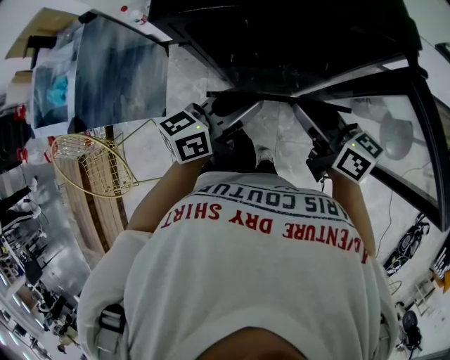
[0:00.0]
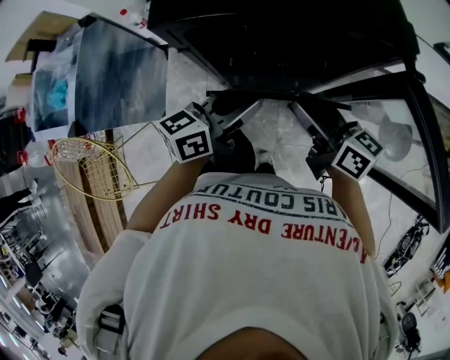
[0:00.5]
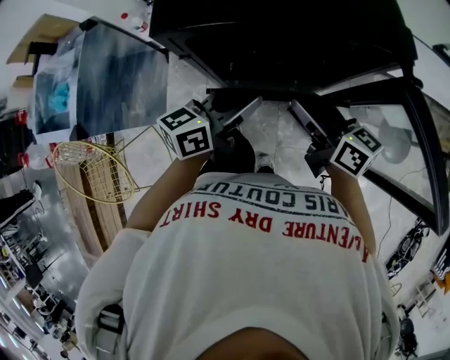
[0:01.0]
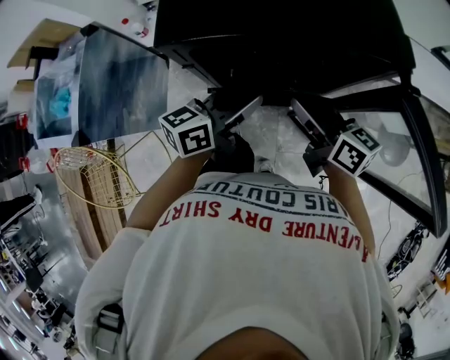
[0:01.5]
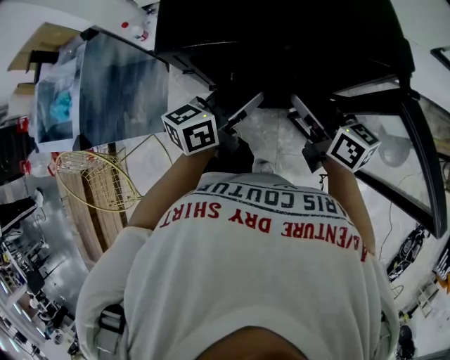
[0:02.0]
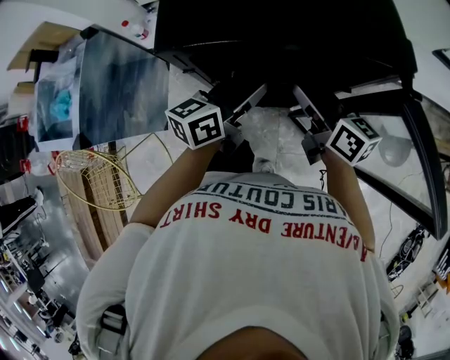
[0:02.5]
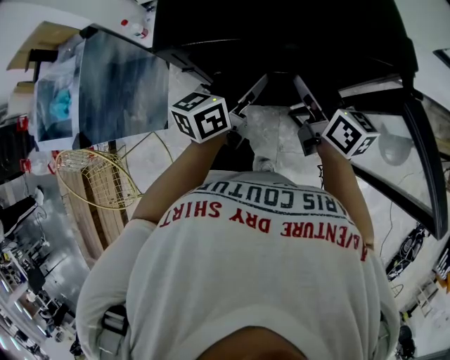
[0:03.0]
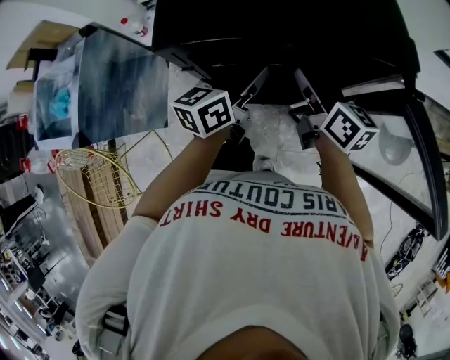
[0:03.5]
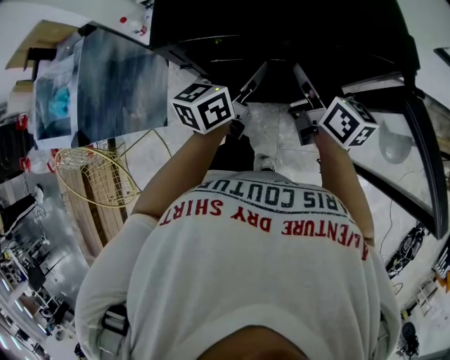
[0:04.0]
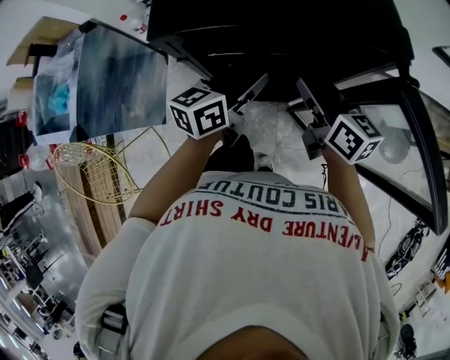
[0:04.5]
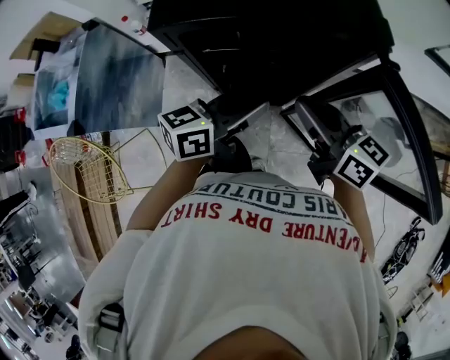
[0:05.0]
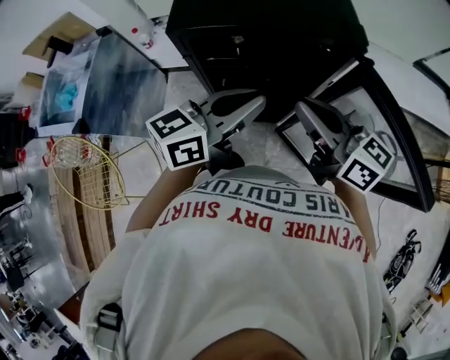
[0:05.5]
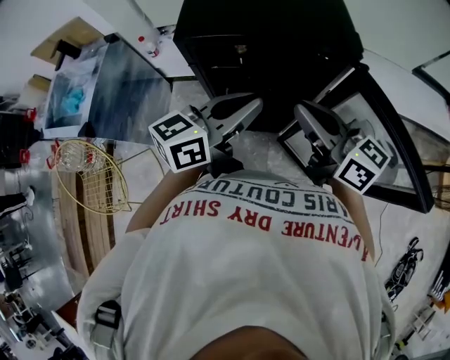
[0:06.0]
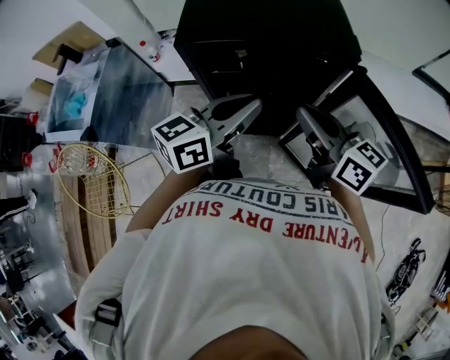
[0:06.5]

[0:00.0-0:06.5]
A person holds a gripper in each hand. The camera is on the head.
0:00.0 to 0:02.0: The two grippers go roughly 5 cm forward.
0:02.0 to 0:04.5: The grippers make only small movements.
0:04.5 to 0:06.5: The two grippers go about 15 cm upward and backward. The right gripper closes up; the left gripper closes its fingers.

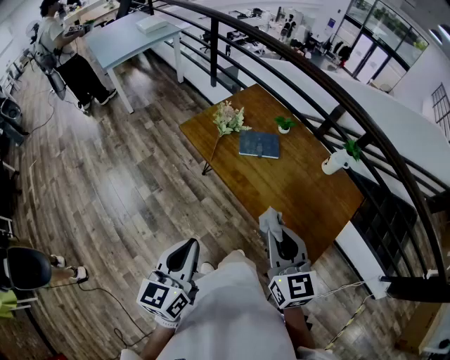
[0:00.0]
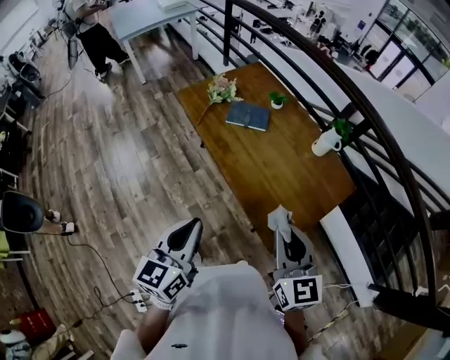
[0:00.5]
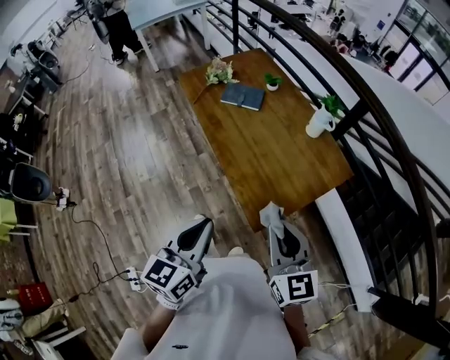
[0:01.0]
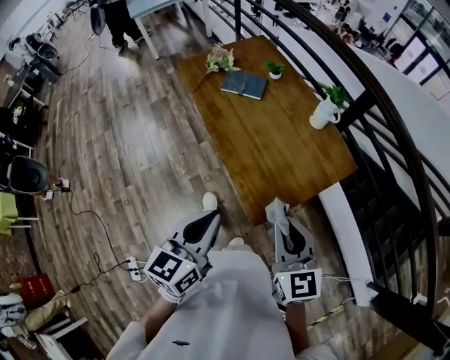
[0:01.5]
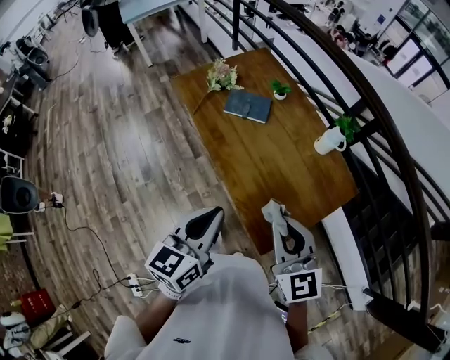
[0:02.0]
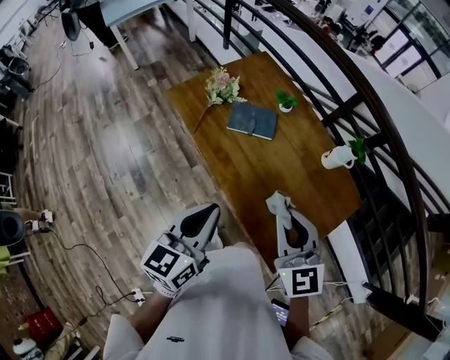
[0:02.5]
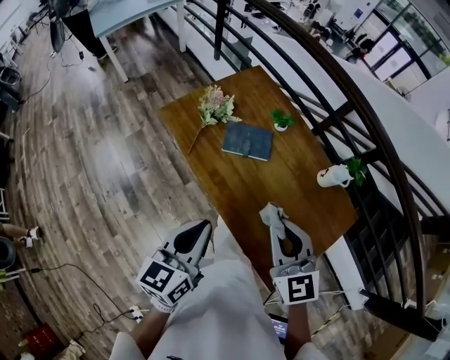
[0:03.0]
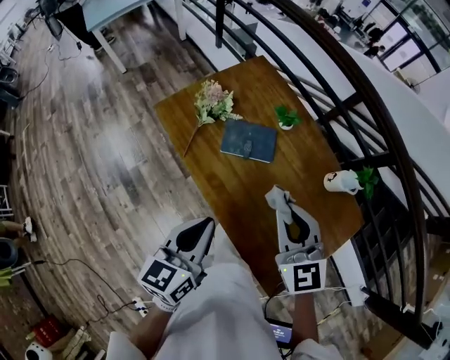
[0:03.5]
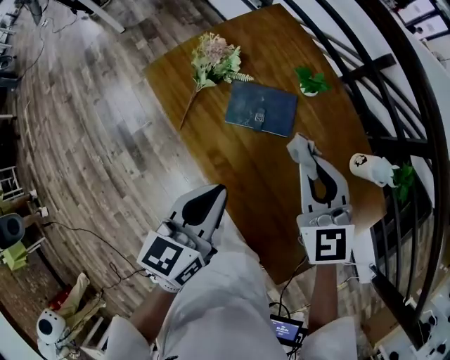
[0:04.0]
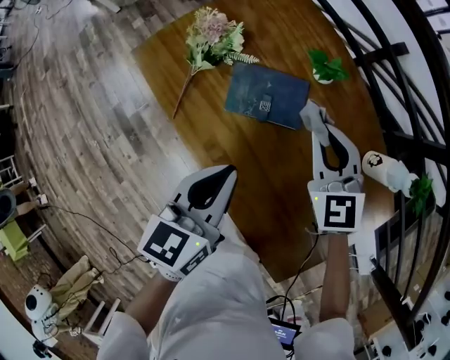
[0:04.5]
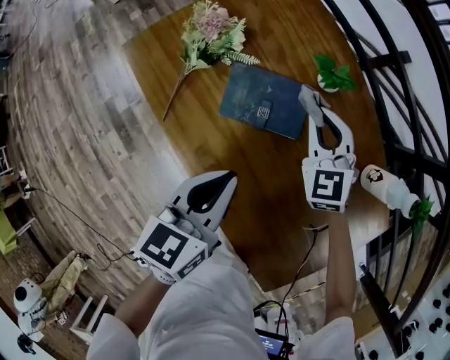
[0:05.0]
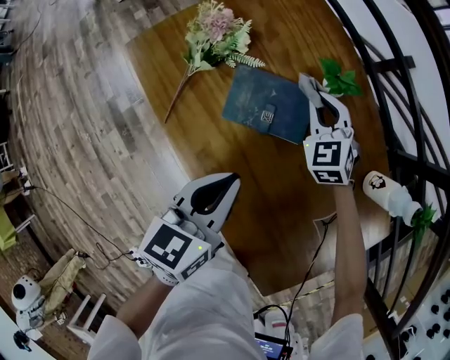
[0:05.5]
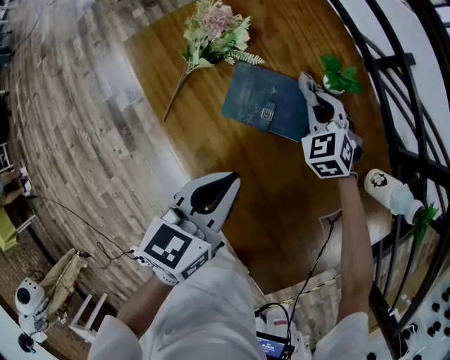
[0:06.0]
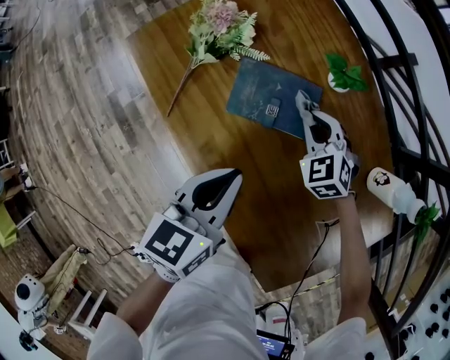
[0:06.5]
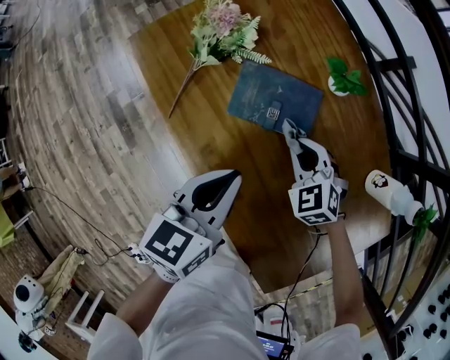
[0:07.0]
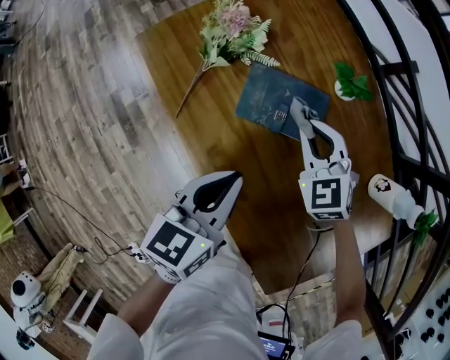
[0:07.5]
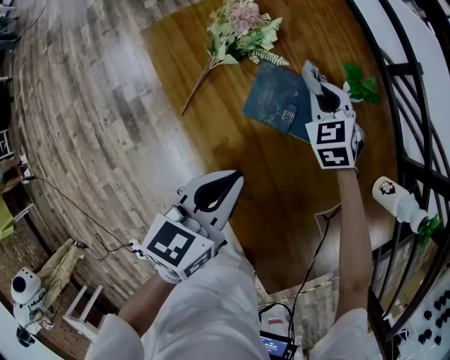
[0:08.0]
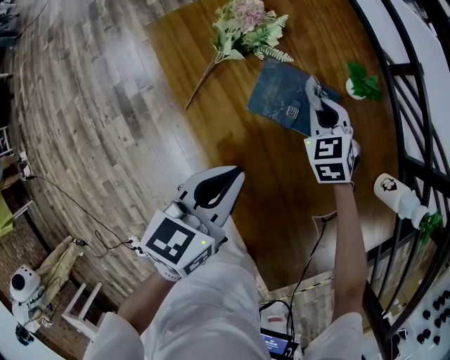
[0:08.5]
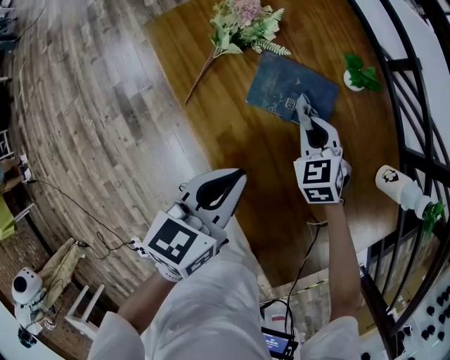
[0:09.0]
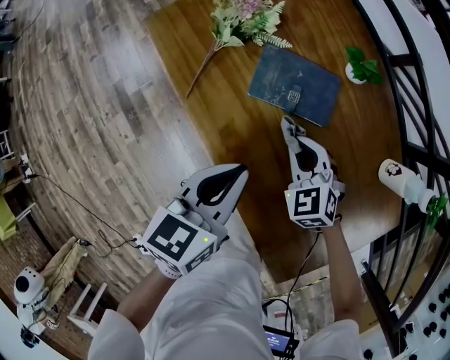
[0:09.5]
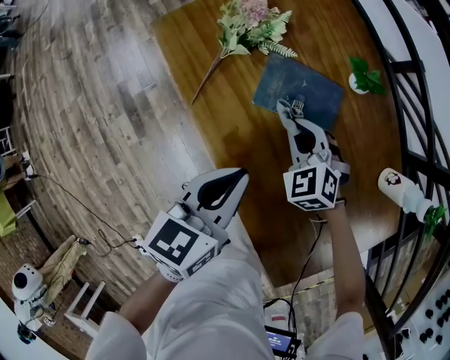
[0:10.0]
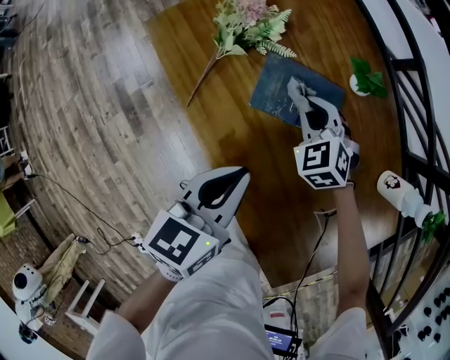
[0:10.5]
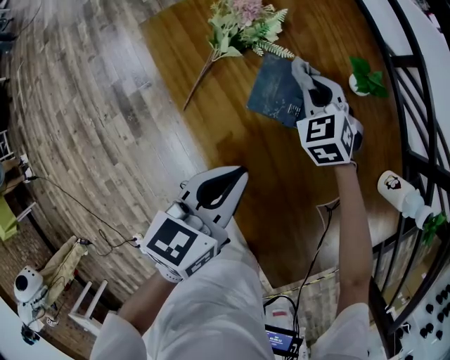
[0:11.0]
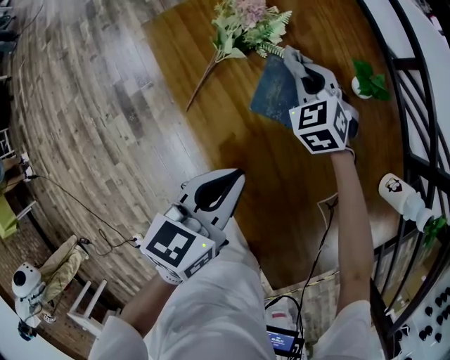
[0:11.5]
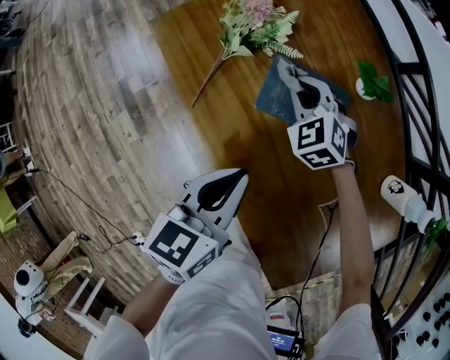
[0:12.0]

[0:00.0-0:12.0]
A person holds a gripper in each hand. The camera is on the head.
0:00.0 to 0:02.0: Both grippers move to the right, about 25 cm.
0:02.0 to 0:04.0: Both grippers move forward, some 35 cm.
0:04.0 to 0:06.0: The left gripper shifts about 10 cm downward and forward. Meanwhile the right gripper moves downward and forward, approximately 30 cm, and turns by about 40 degrees.
0:06.0 to 0:08.0: The right gripper moves to the left, roughly 5 cm, and reaches some 15 cm backward, then returns.
0:08.0 to 0:10.0: The right gripper shifts about 15 cm backward.
0:10.0 to 0:12.0: The right gripper is displaced forward by roughly 10 cm.

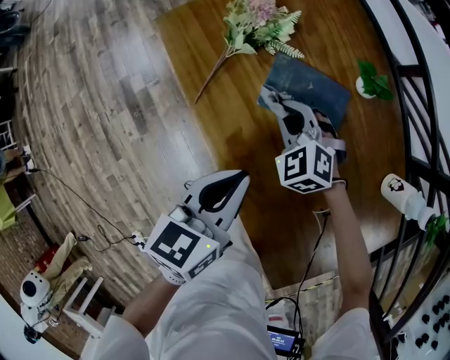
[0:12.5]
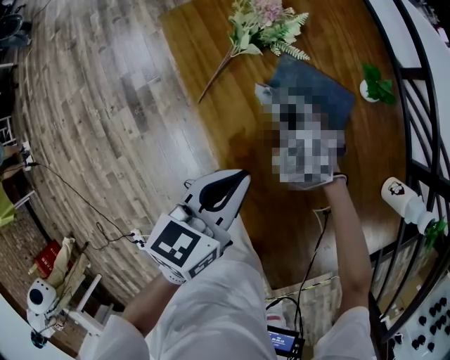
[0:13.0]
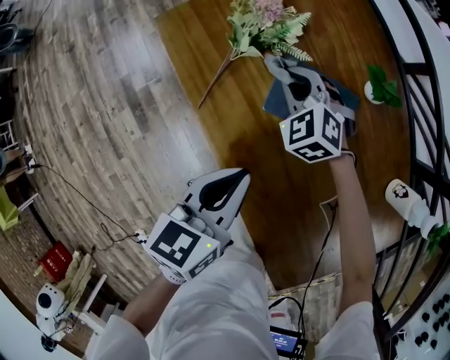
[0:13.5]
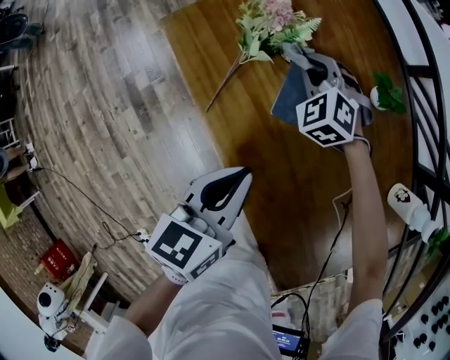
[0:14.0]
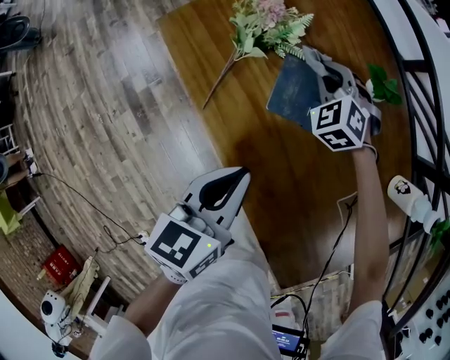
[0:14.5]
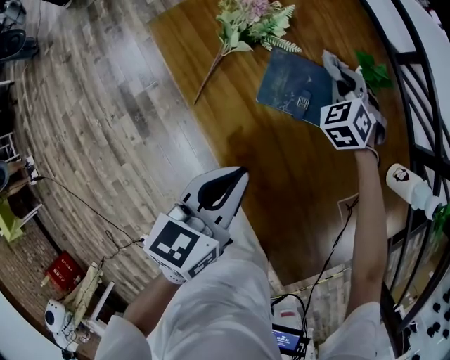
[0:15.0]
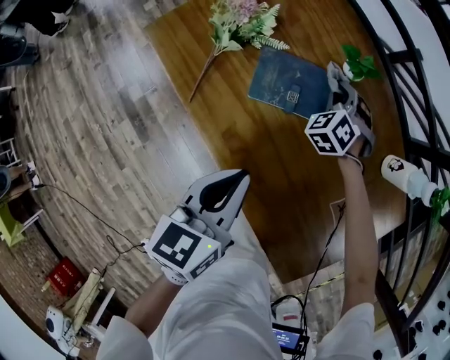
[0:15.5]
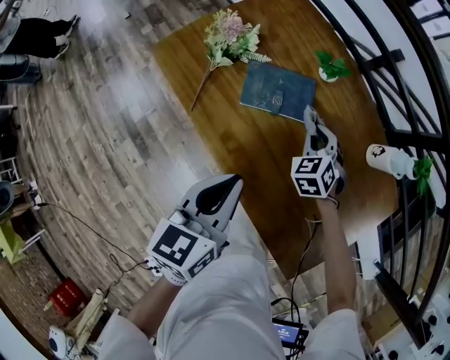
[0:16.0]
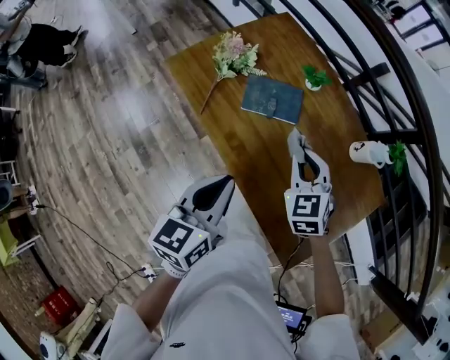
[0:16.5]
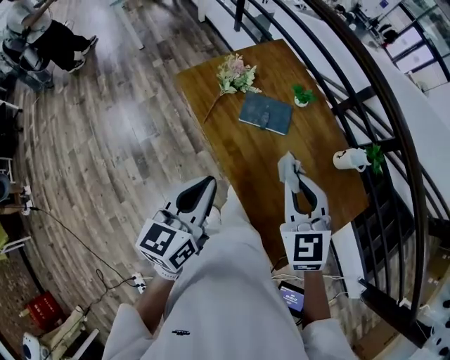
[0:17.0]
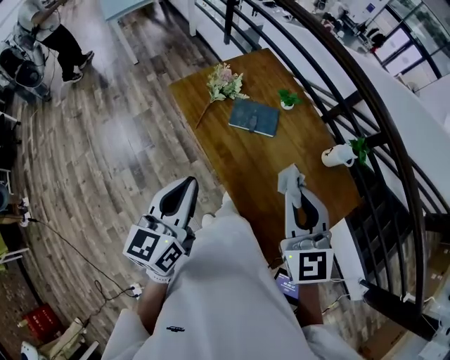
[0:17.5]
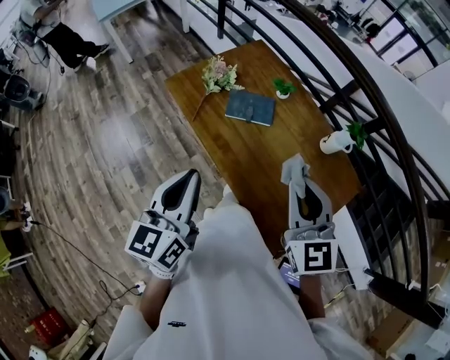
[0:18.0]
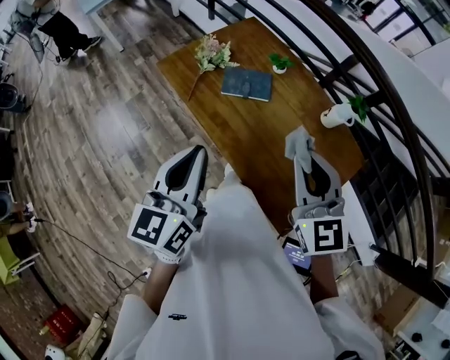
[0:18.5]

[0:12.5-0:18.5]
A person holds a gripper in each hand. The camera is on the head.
0:12.5 to 0:14.5: The right gripper shifts approximately 15 cm forward.
0:14.5 to 0:16.5: The left gripper travels upward and backward by about 15 cm. The right gripper goes roughly 35 cm backward, upward and to the right, and rotates approximately 40 degrees.
0:16.5 to 0:18.5: The left gripper travels upward and backward by some 15 cm. The right gripper is displaced upward and backward by about 25 cm, and swivels approximately 30 degrees.

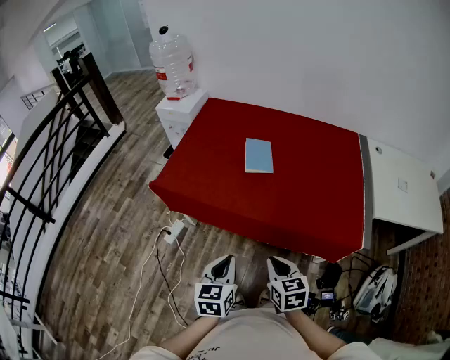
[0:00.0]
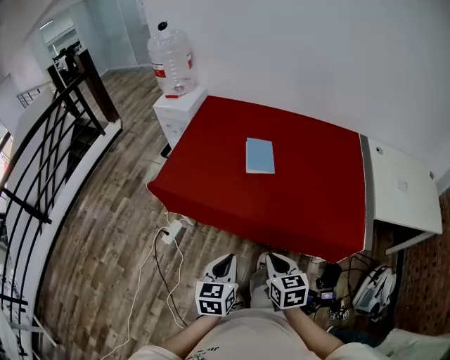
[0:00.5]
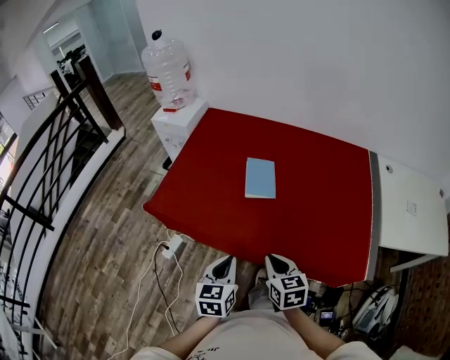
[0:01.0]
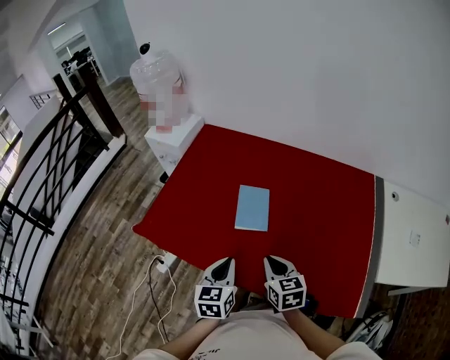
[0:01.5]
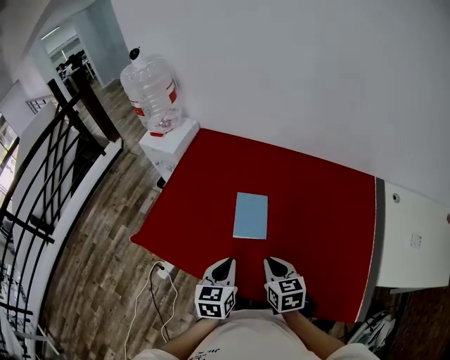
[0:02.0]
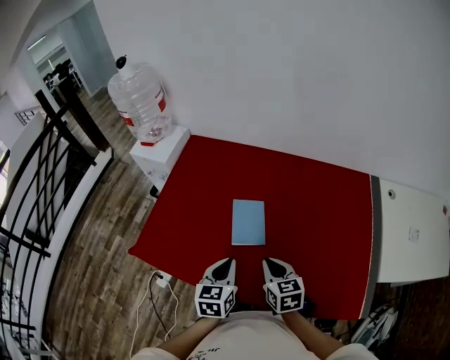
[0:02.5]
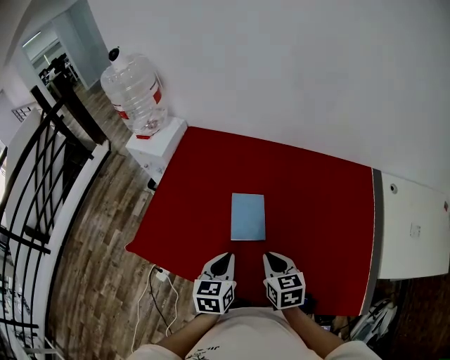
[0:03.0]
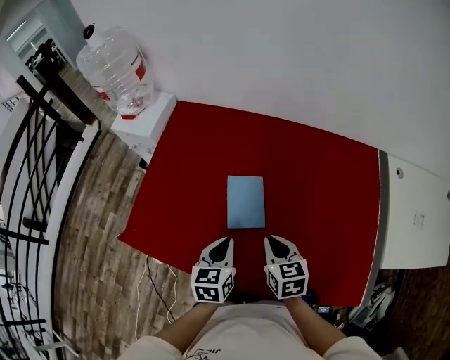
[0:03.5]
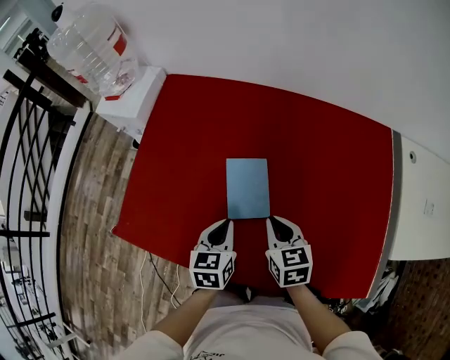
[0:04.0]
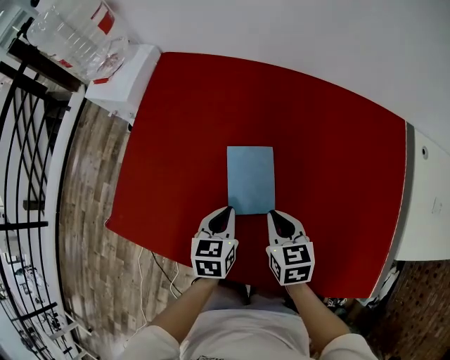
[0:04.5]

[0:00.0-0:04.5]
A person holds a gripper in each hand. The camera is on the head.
0:00.0 to 0:02.0: The two grippers go approximately 35 cm forward.
0:02.0 to 0:04.5: Both grippers move forward and downward, about 20 cm.
